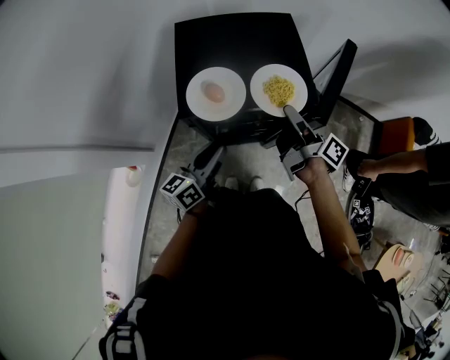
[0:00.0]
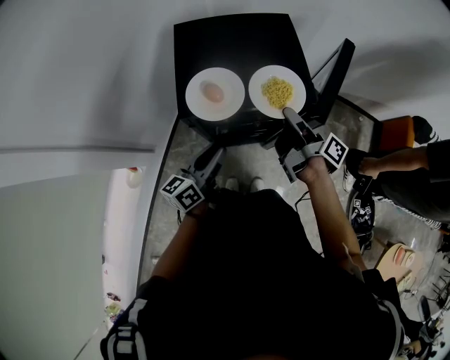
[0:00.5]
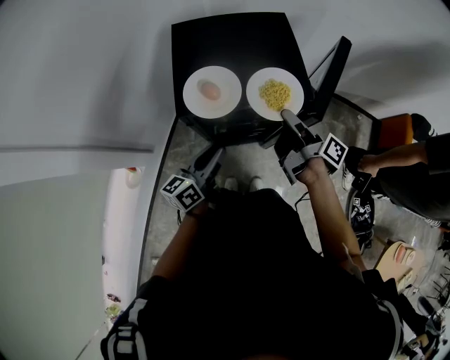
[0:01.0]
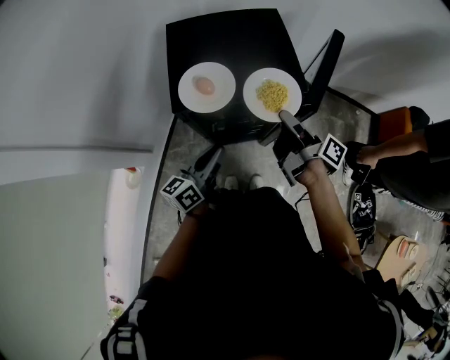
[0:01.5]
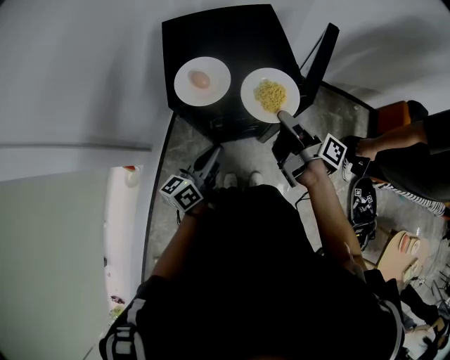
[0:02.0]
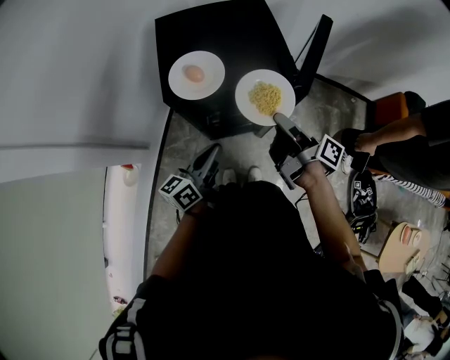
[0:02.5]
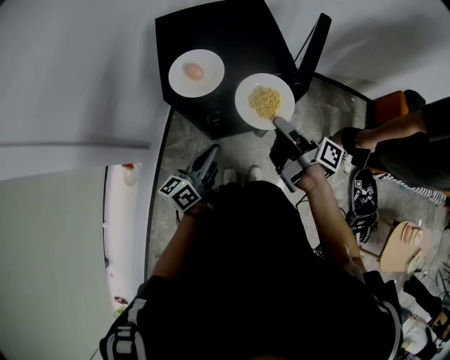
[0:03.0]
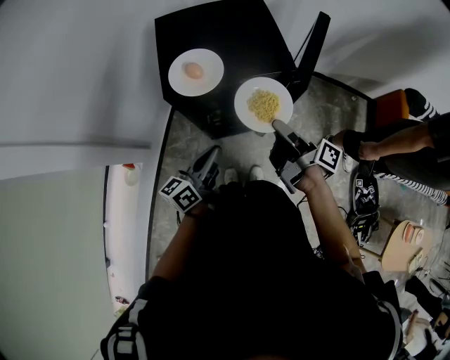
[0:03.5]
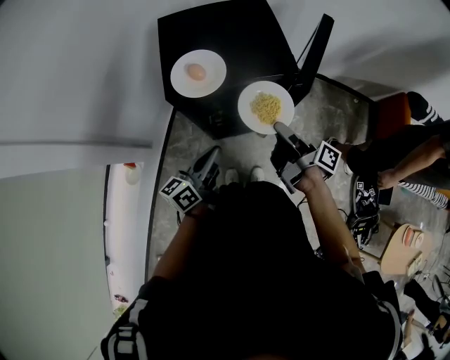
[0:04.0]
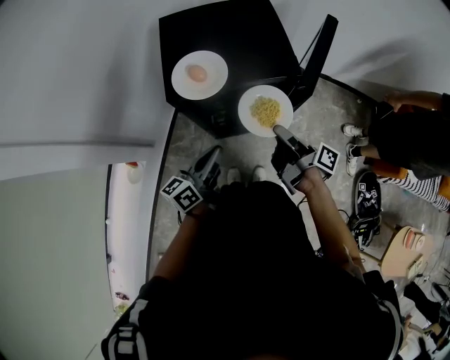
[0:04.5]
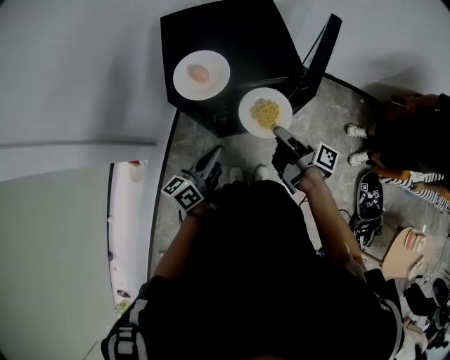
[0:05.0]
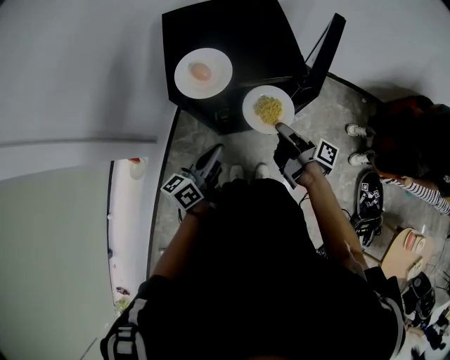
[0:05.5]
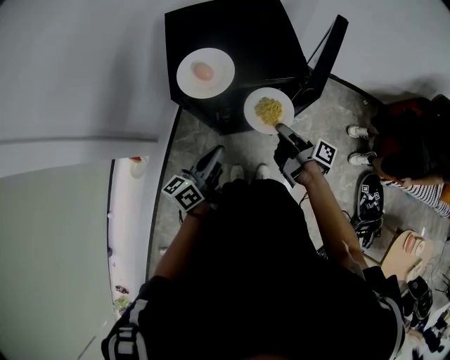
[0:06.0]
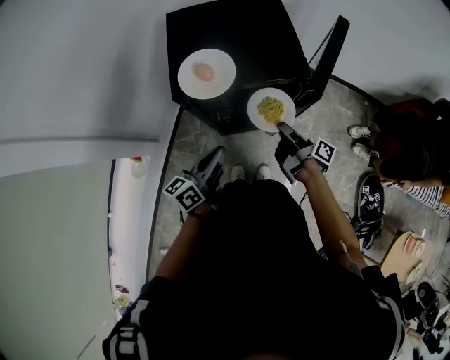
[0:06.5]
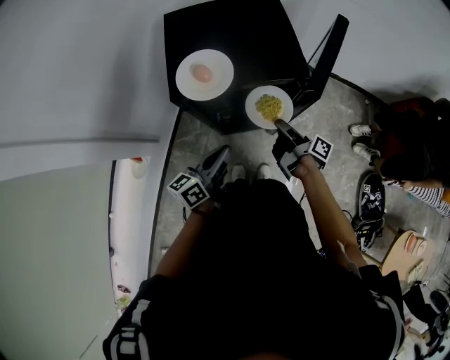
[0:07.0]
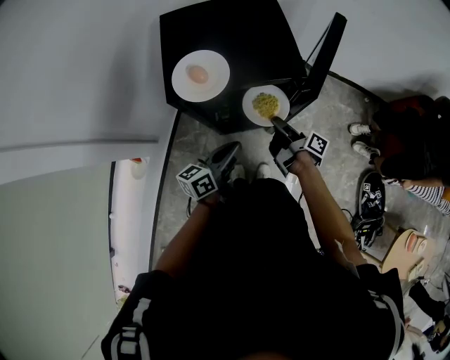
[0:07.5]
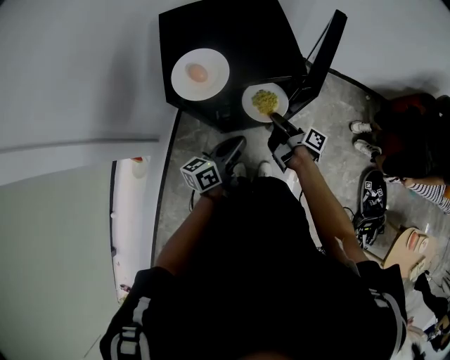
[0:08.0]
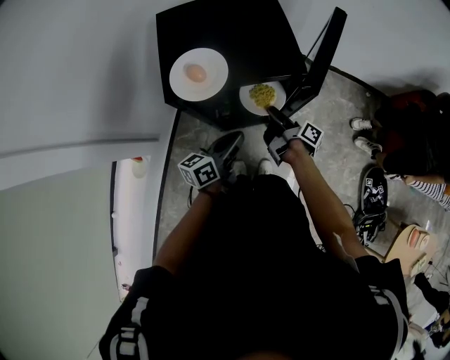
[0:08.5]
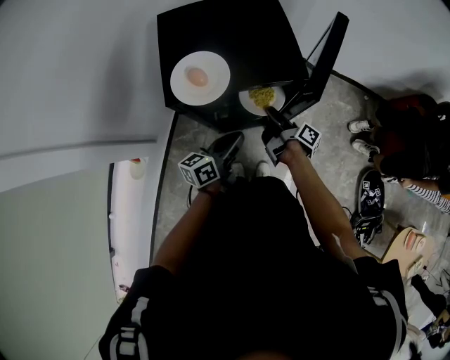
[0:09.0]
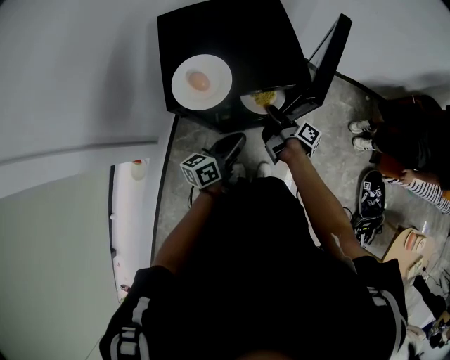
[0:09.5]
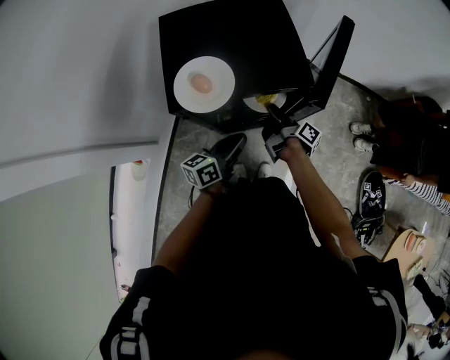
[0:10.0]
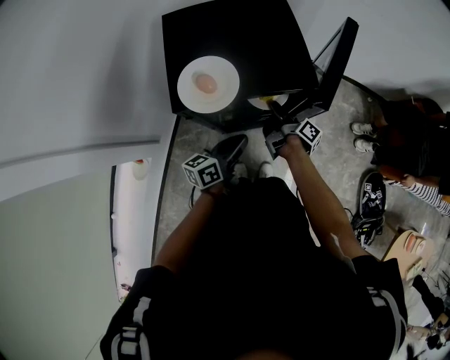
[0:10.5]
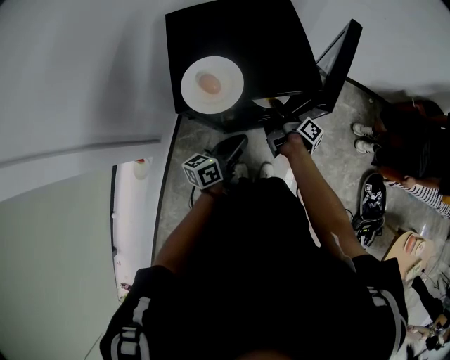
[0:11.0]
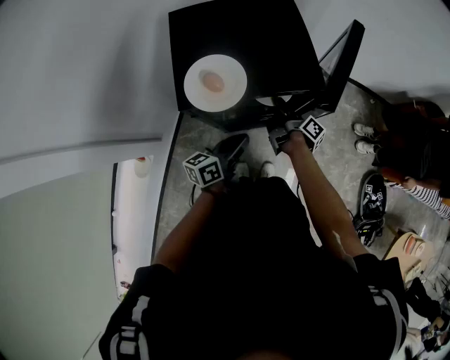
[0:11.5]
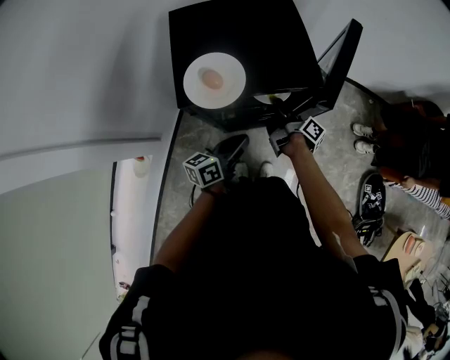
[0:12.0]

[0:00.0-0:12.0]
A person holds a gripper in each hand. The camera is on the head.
0:00.0 to 0:02.0: The left gripper shifts by roughly 5 cm.
0:06.0 to 0:08.0: The left gripper moves roughly 10 cm.

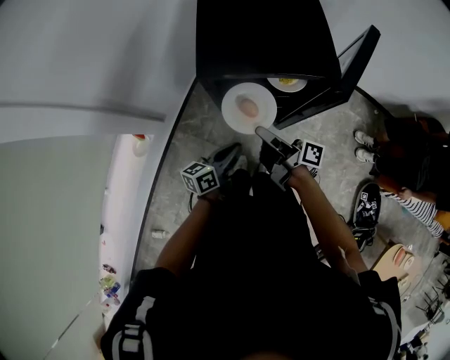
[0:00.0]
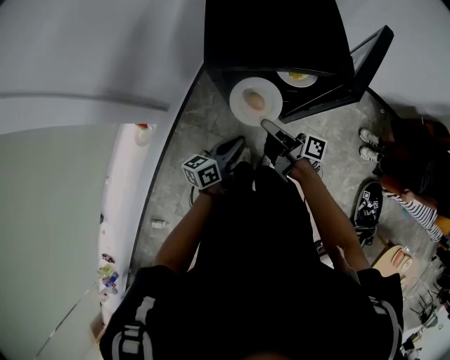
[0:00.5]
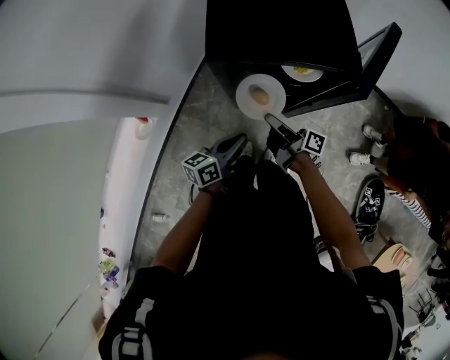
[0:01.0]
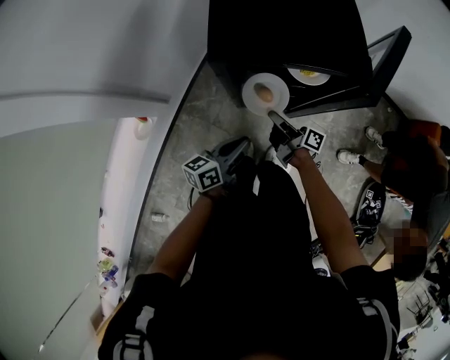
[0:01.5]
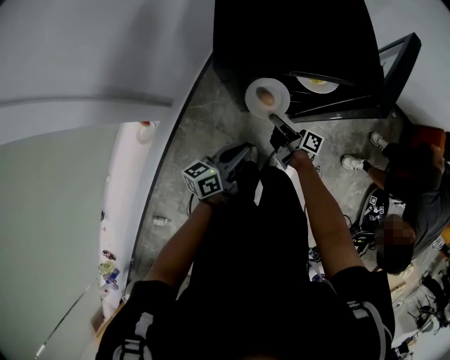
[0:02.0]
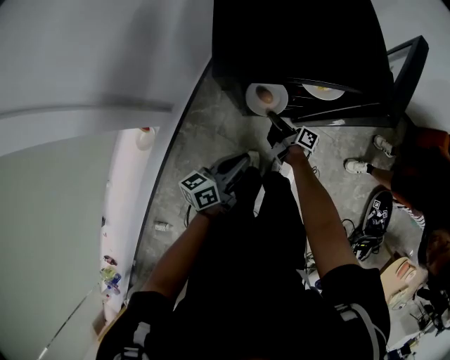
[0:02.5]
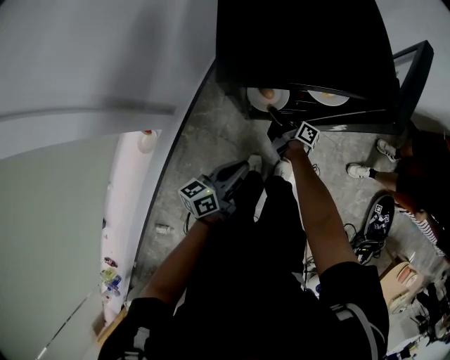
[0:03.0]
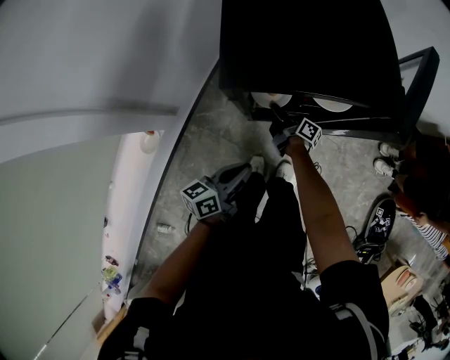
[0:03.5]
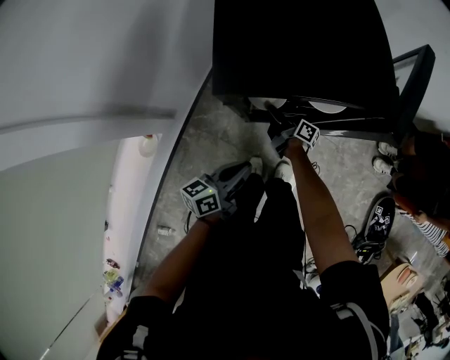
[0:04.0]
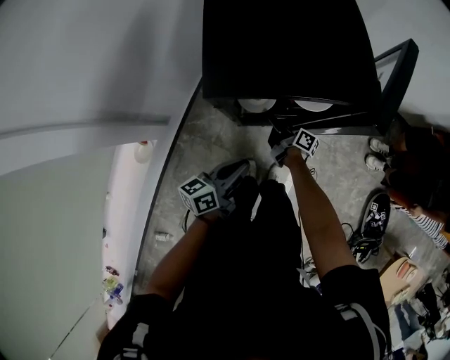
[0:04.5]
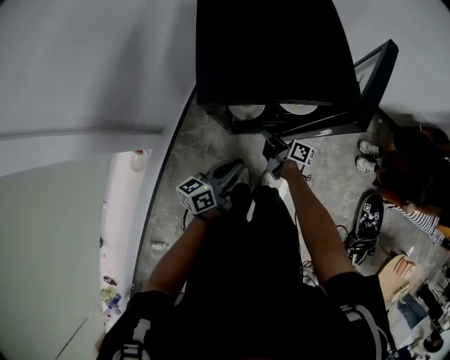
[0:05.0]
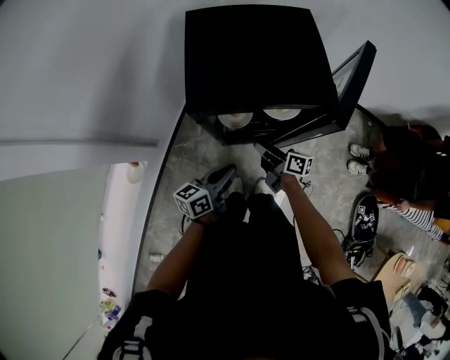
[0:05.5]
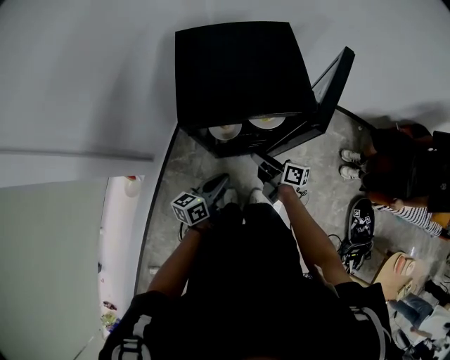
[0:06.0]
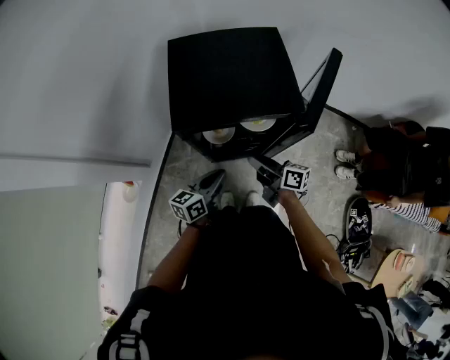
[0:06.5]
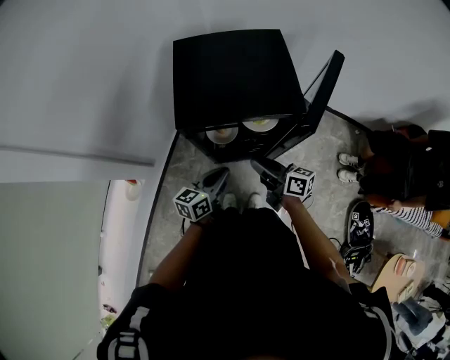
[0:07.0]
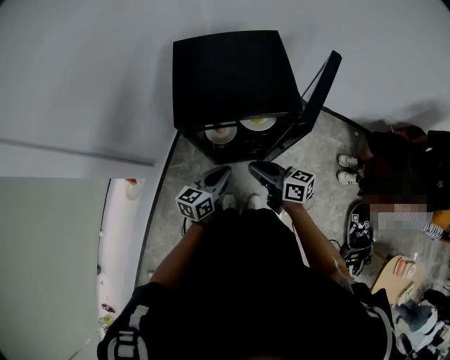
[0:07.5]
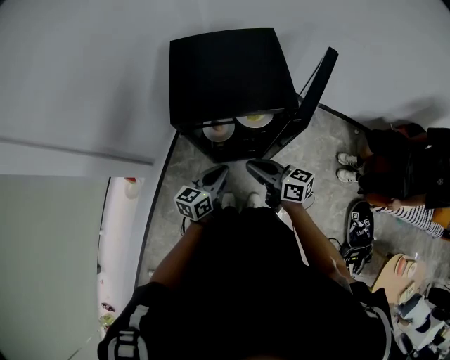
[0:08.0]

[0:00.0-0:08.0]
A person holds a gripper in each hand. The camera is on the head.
0:04.0 to 0:06.0: The left gripper goes about 5 cm upward.
0:06.0 to 0:08.0: The left gripper shifts by approximately 5 cm.

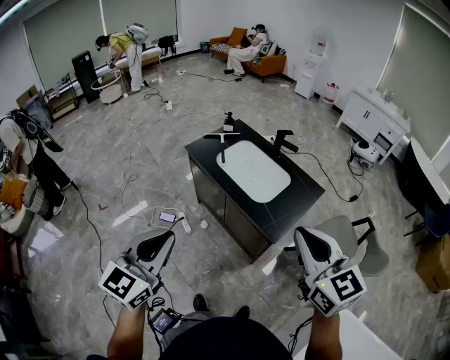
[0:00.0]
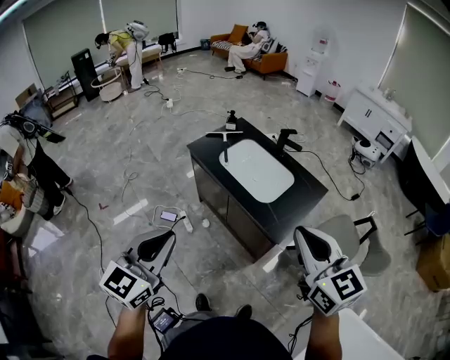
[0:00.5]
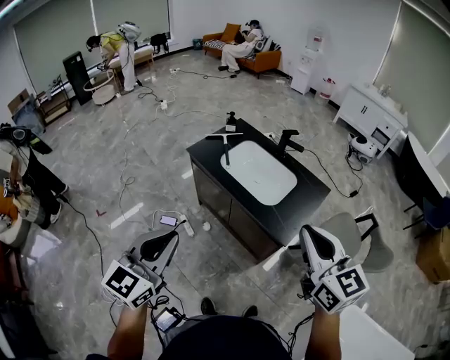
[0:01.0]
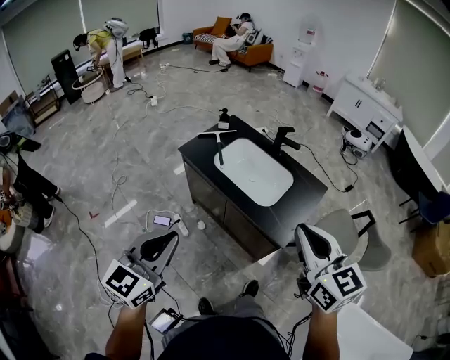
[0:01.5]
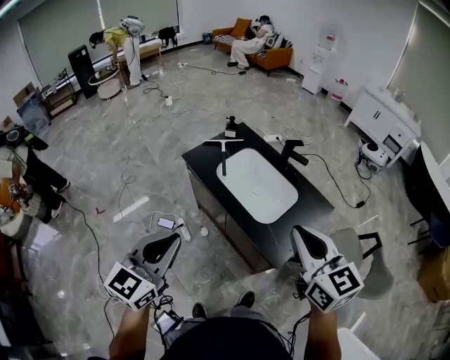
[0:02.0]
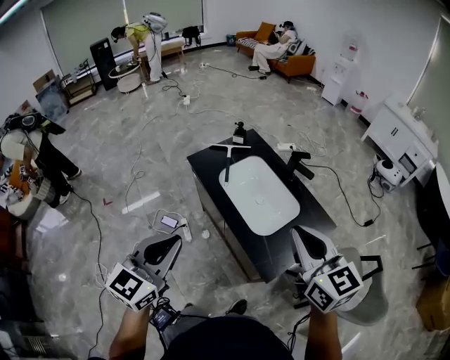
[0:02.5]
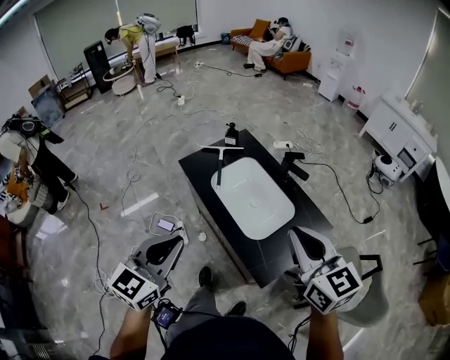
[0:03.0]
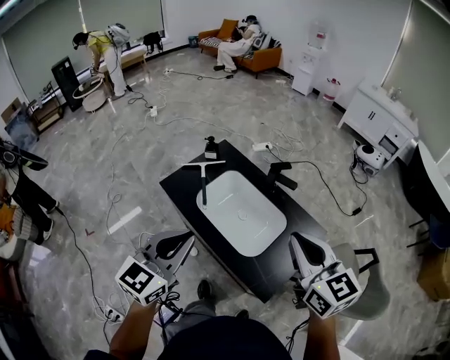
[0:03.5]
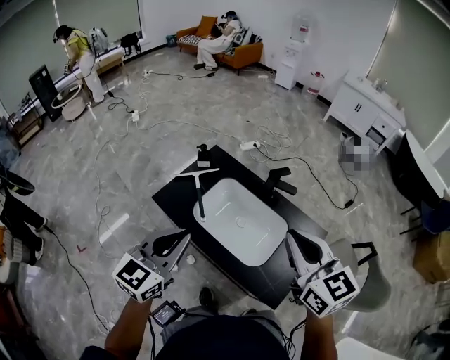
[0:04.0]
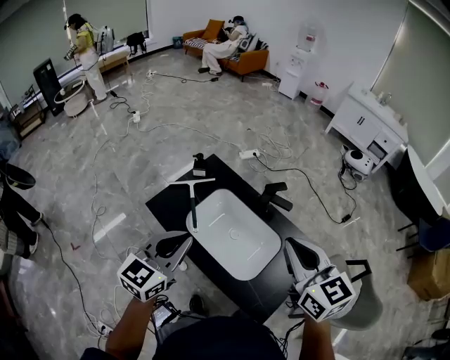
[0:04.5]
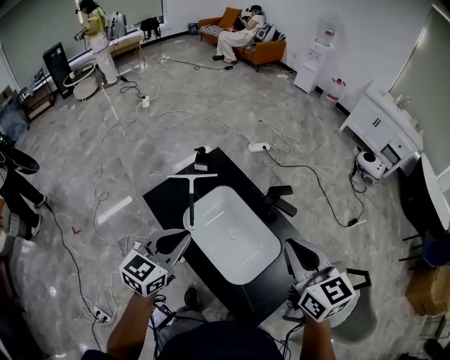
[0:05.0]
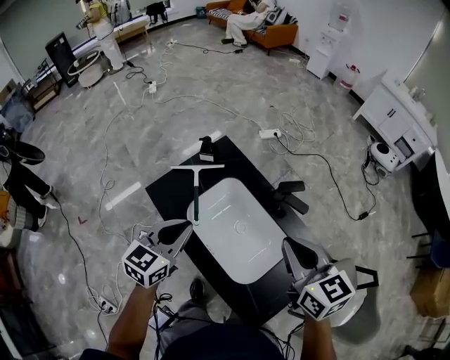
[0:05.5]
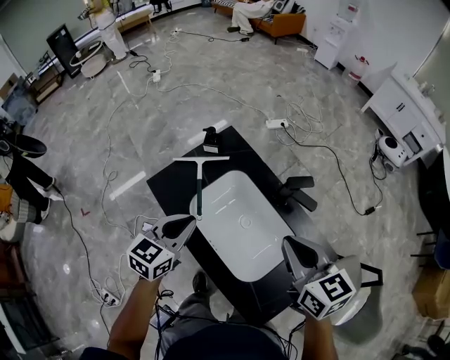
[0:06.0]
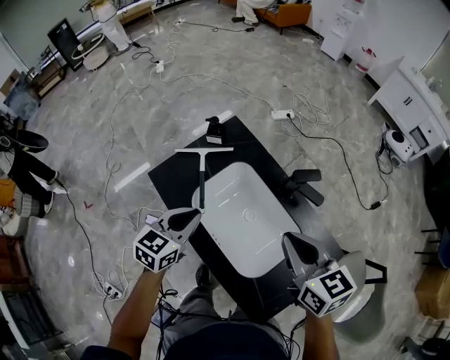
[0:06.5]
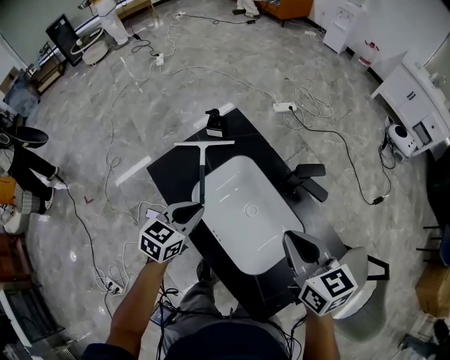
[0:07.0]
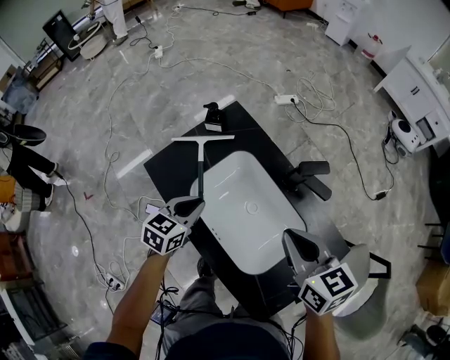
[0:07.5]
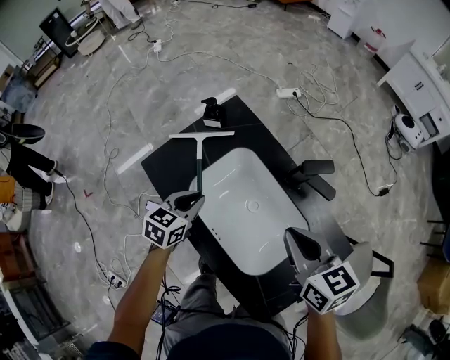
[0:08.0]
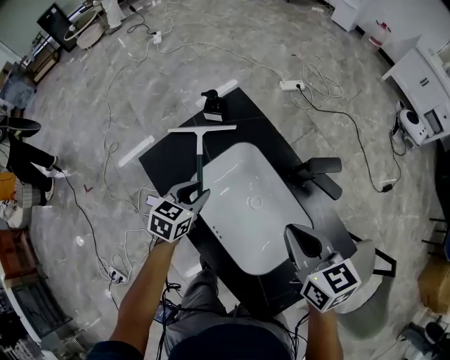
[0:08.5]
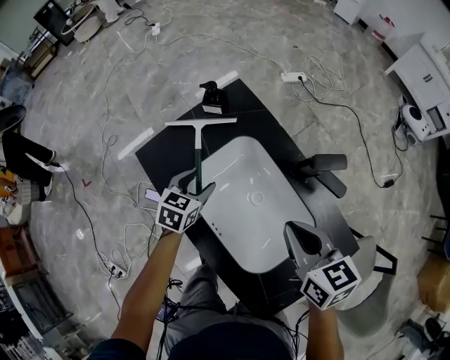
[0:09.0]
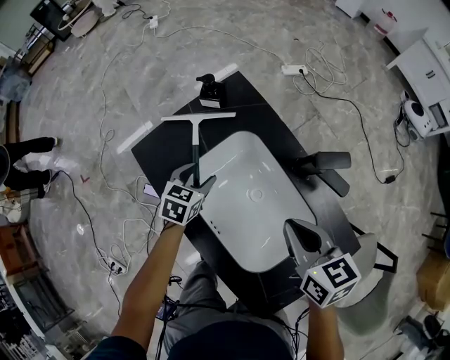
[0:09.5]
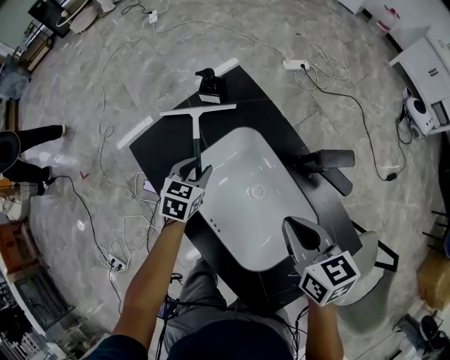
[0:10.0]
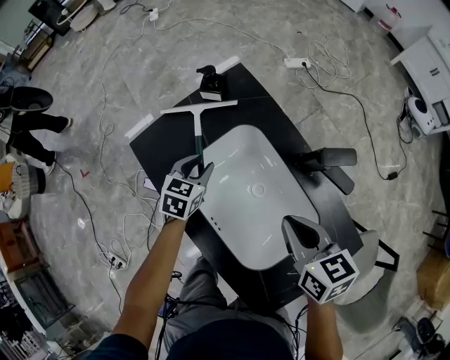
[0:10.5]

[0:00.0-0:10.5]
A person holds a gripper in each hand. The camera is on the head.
0:00.0 to 0:02.0: The grippers both shift forward by some 20 cm.
0:02.0 to 0:04.0: Both grippers move forward, roughly 25 cm.
0:04.0 to 0:06.5: Both grippers travel together downward and forward, about 25 cm. The right gripper turns by about 20 degrees, while the left gripper changes its angle by roughly 20 degrees.
0:06.5 to 0:08.5: The right gripper moves downward, about 10 cm. The left gripper travels downward and forward by approximately 15 cm, and opens.
0:08.5 to 0:10.5: The left gripper is displaced downward and forward by about 10 cm, and opens, then closes once more; the right gripper is displaced downward by some 5 cm.
